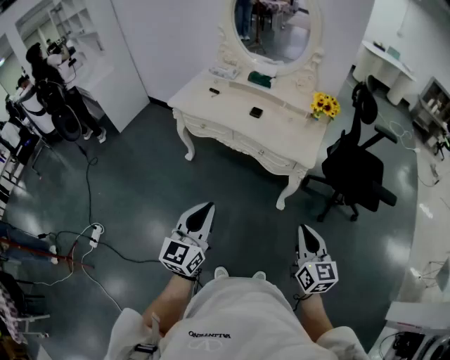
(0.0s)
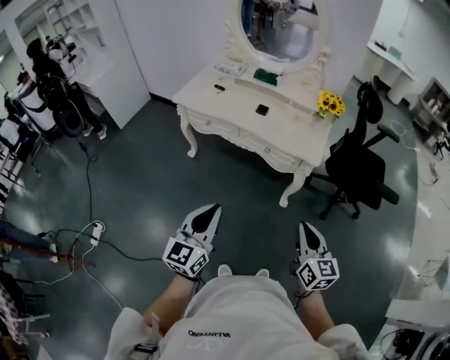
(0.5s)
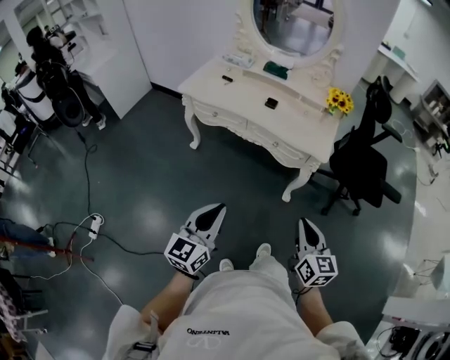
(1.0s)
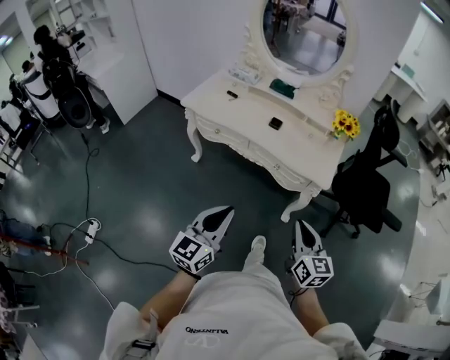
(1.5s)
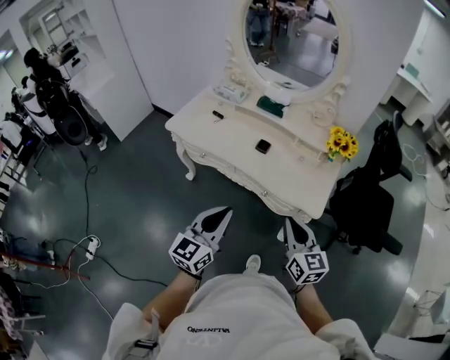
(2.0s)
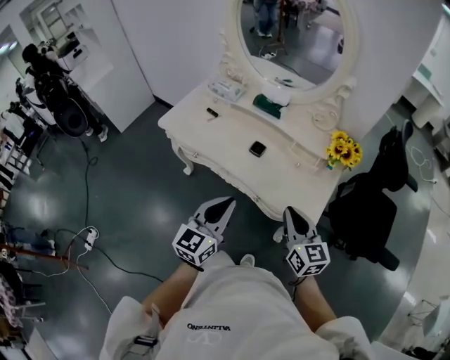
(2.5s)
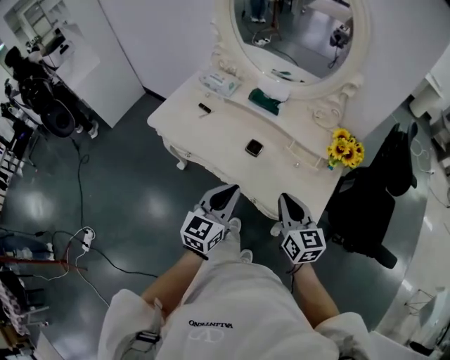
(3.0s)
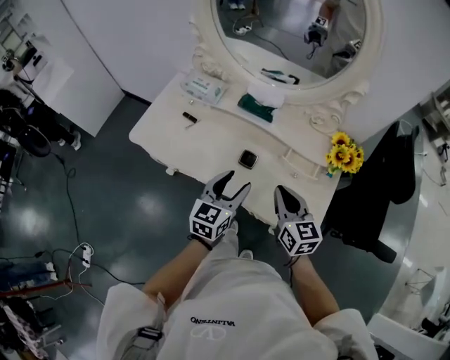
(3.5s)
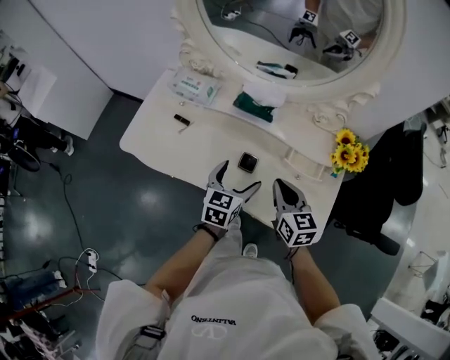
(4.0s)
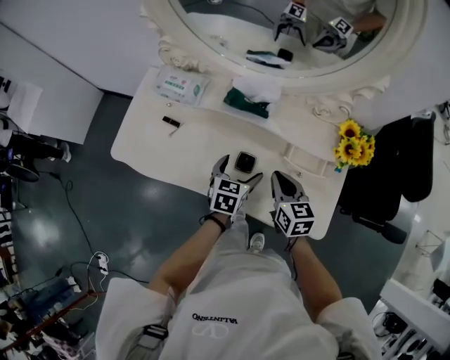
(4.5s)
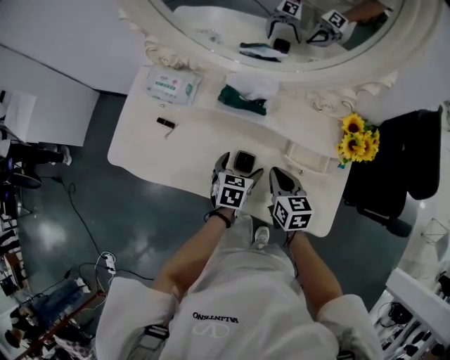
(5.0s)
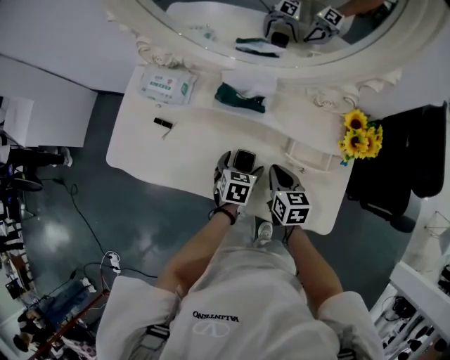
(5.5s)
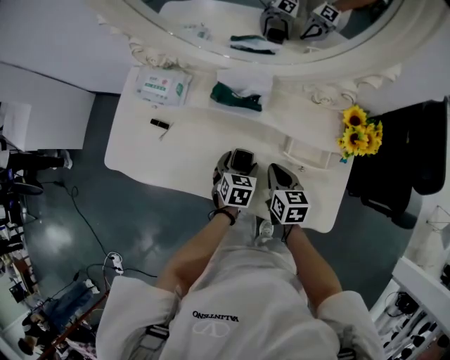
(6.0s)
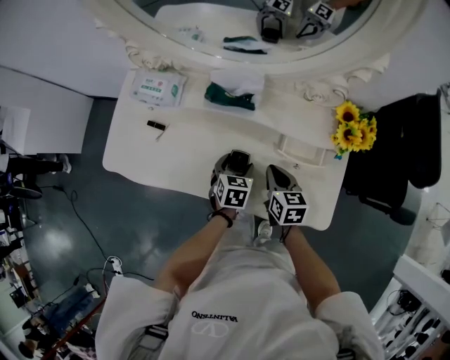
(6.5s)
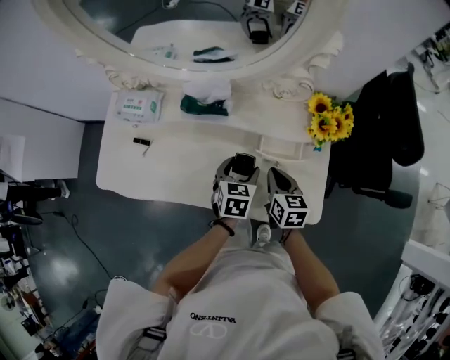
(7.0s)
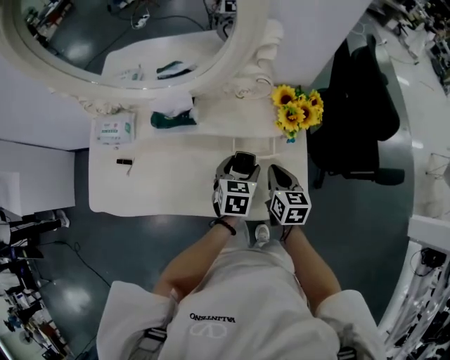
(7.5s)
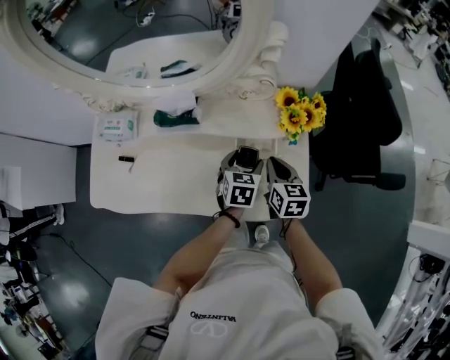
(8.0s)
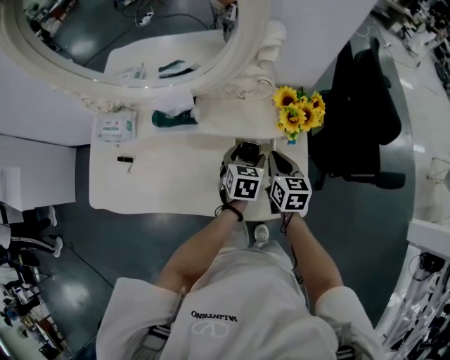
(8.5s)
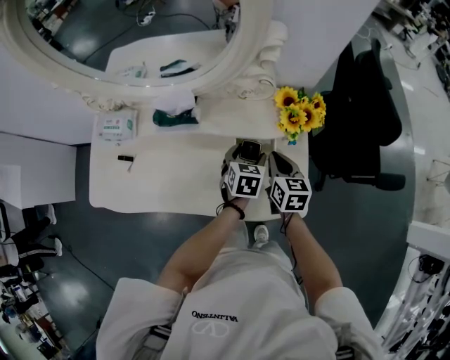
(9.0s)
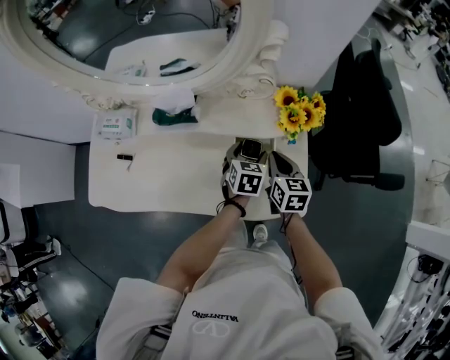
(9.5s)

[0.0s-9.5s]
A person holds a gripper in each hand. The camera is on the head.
0.0s to 2.0s: The grippers both shift forward by about 25 cm.
2.0s to 4.0s: The left gripper moves forward and downward, some 40 cm, rotates approximately 30 degrees, and opens. Meanwhile the right gripper moves forward, roughly 35 cm.
4.0s to 5.5s: The two grippers go roughly 15 cm downward and forward. The left gripper changes its angle by about 20 degrees.
5.5s to 7.5s: The left gripper goes approximately 20 cm to the right and upward; the right gripper heads to the right, covering roughly 15 cm, and rotates roughly 20 degrees.
7.5s to 9.5s: The left gripper moves roughly 5 cm.

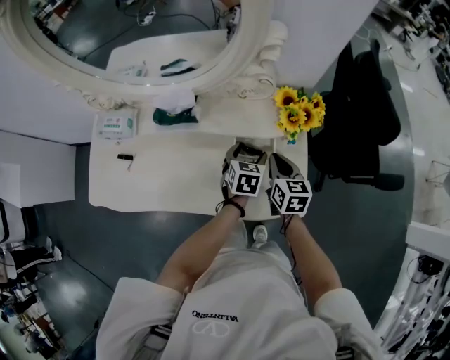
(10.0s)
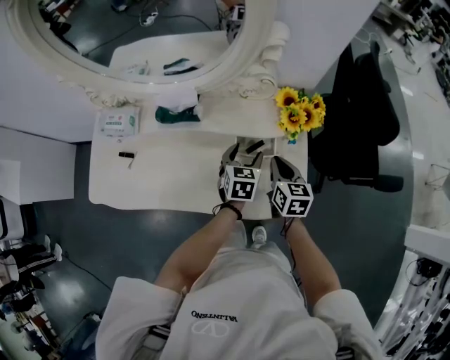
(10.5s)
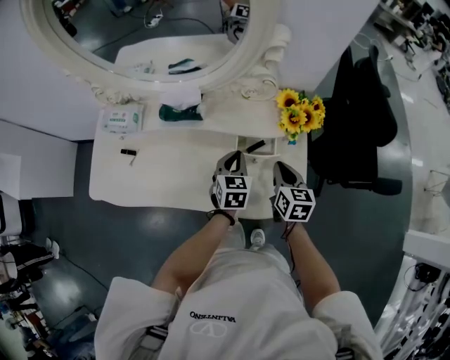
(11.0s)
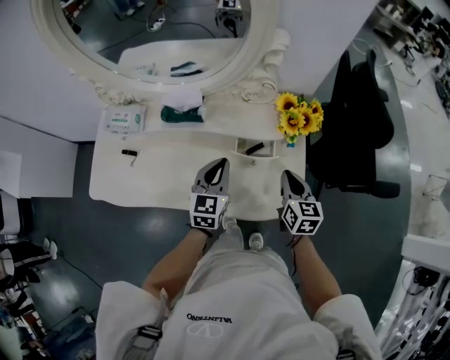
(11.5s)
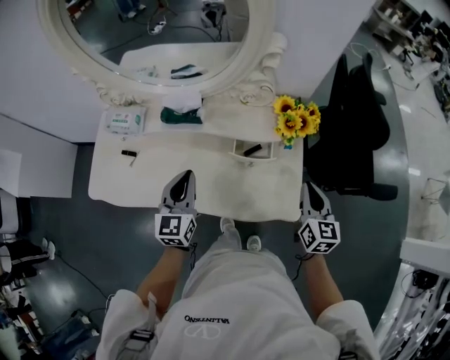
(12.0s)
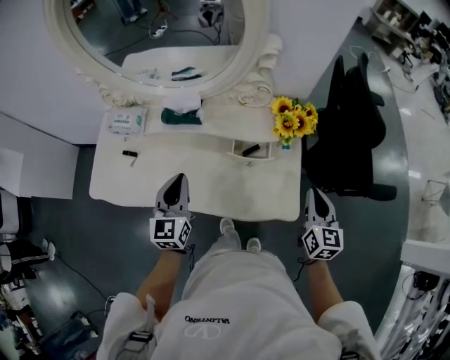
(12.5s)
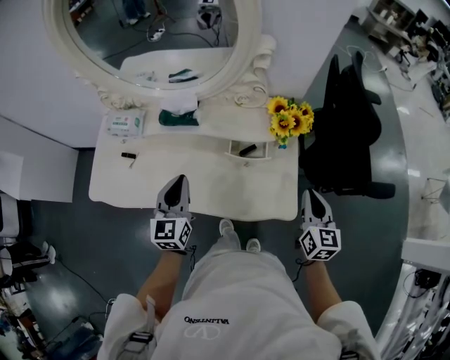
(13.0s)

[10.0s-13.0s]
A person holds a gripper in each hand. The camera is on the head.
10.0s to 11.5s: The left gripper shifts about 15 cm upward, to the left and backward, changes its angle by approximately 30 degrees, and closes its fingers, while the right gripper heads backward, covering about 5 cm.
11.5s to 13.0s: The left gripper travels to the left, backward and upward by roughly 15 cm. The right gripper heads to the right, backward and upward, covering about 15 cm.

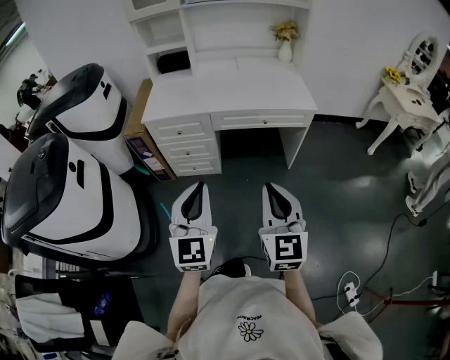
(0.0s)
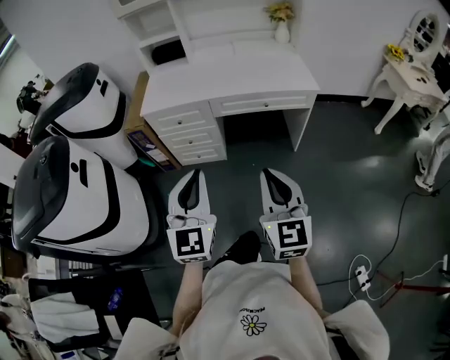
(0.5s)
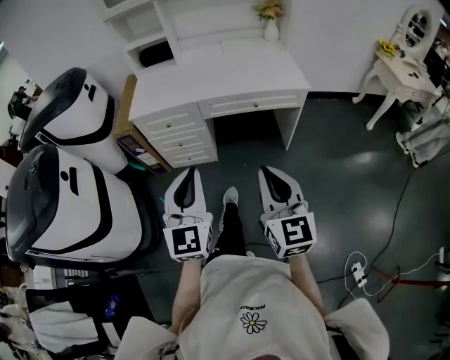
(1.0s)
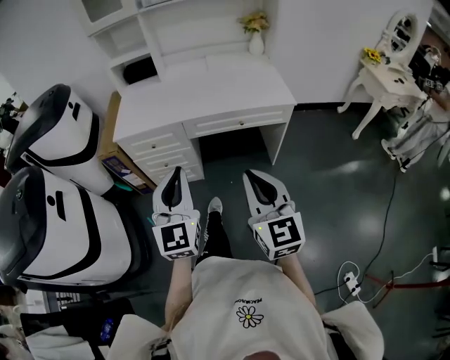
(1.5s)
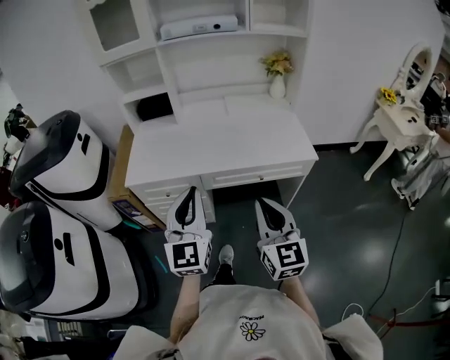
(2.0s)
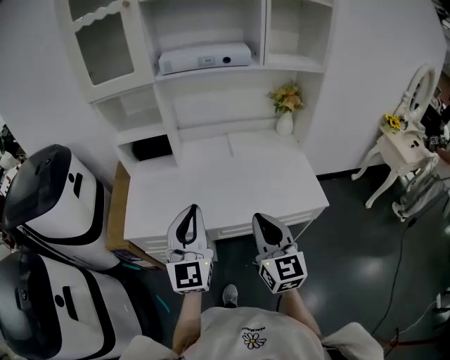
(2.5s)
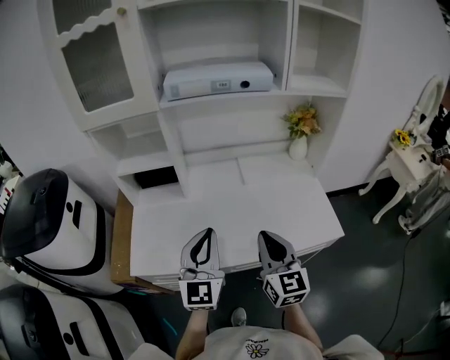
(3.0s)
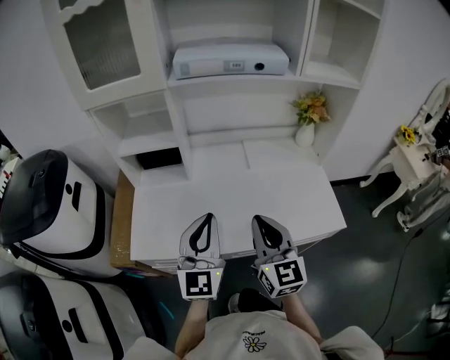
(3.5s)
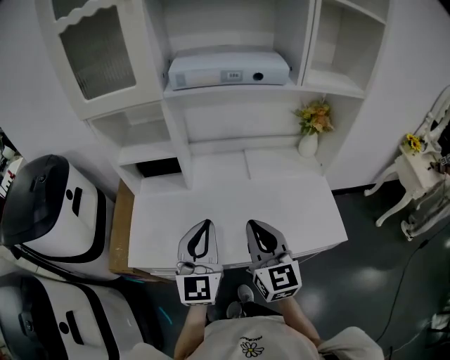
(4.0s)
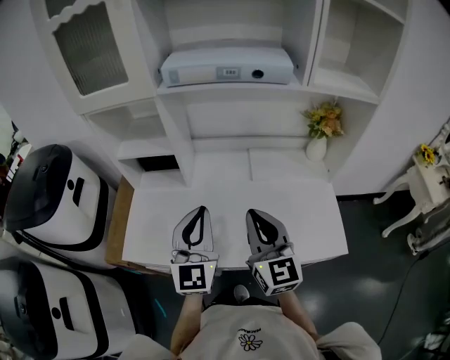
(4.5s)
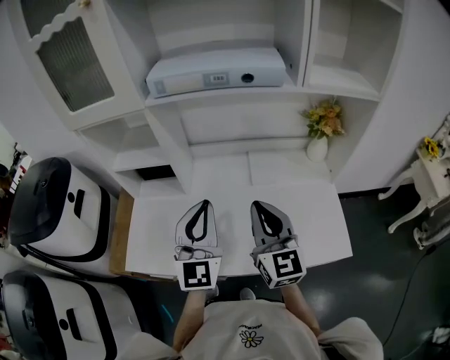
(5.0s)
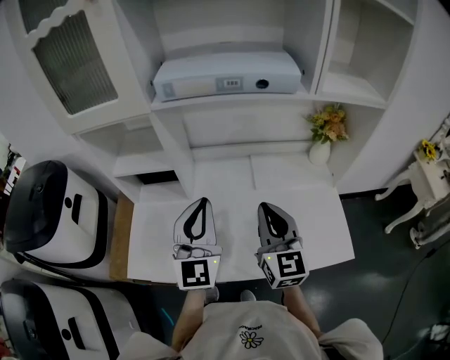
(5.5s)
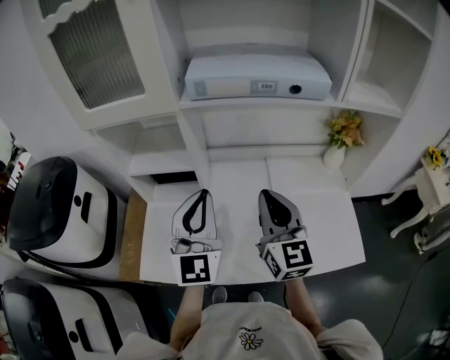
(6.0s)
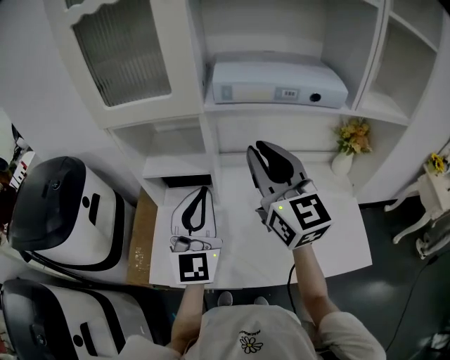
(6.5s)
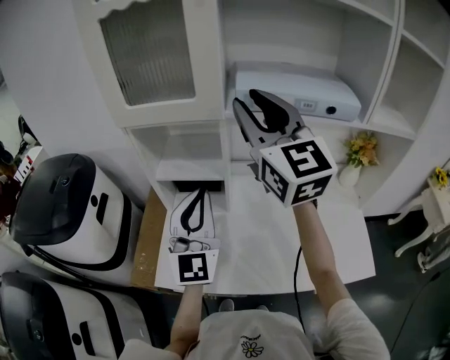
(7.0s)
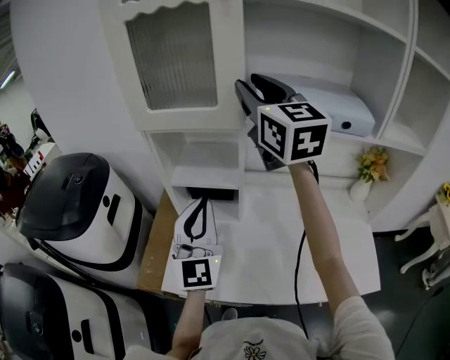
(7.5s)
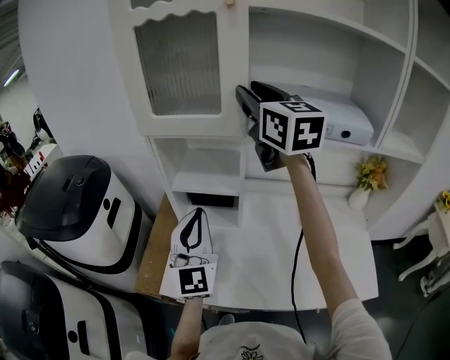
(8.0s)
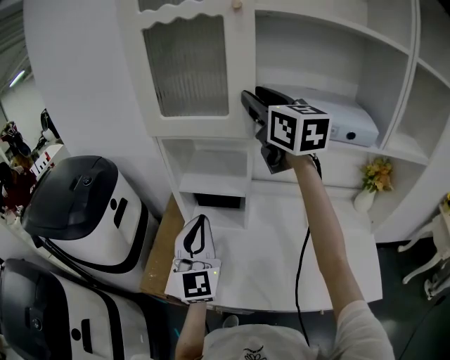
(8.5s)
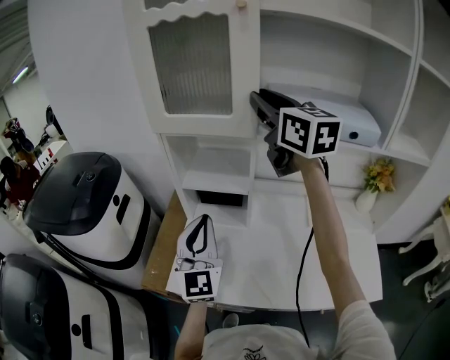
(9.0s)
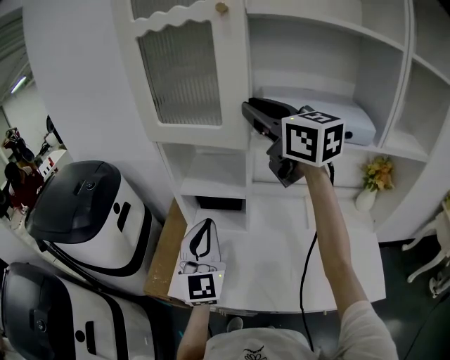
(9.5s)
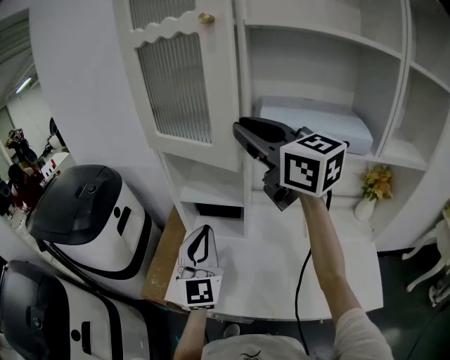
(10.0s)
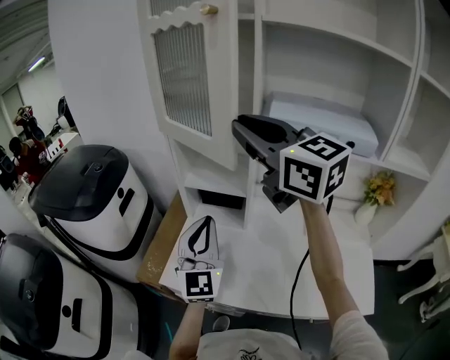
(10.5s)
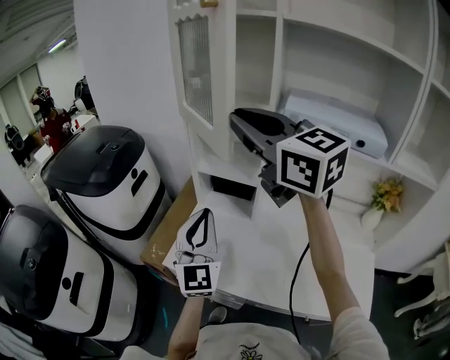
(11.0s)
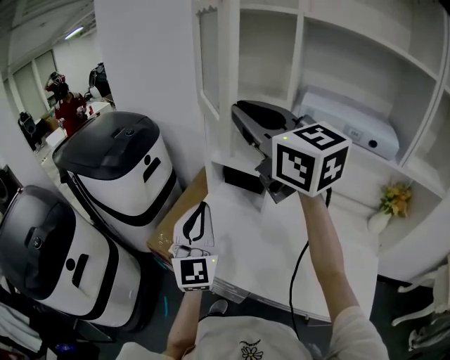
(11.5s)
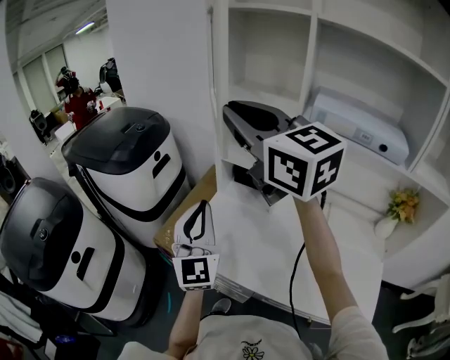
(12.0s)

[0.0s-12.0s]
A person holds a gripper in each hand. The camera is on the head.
0.0s to 2.0s: The two grippers go about 25 cm forward.
2.0s to 4.0s: Both grippers travel together forward, about 30 cm.
4.0s to 6.0s: The right gripper moves forward, roughly 15 cm. The left gripper goes roughly 15 cm forward and upward.
6.0s to 8.0s: The left gripper is displaced to the left by roughly 15 cm. Meanwhile the right gripper shifts approximately 35 cm upward, forward and to the left, and opens its fingers.
8.0s to 10.0s: The right gripper goes approximately 10 cm backward, and swivels about 20 degrees.
10.0s to 12.0s: The right gripper travels to the left by some 15 cm. Meanwhile the left gripper is displaced to the left and backward by approximately 10 cm.

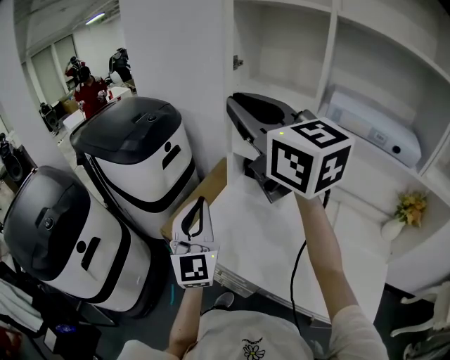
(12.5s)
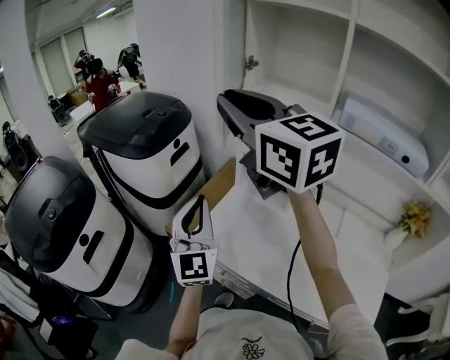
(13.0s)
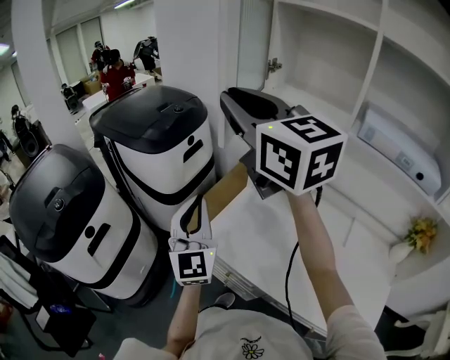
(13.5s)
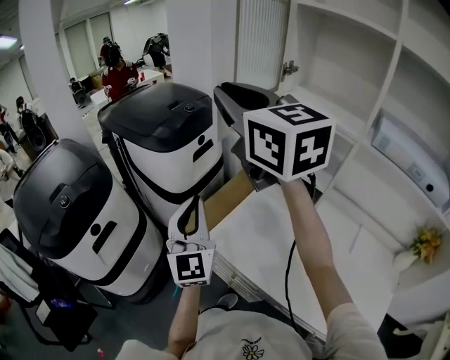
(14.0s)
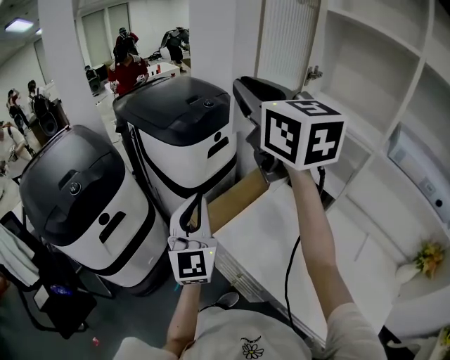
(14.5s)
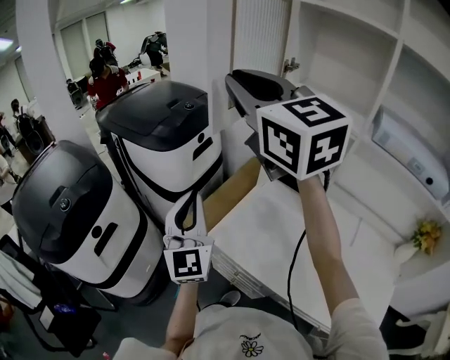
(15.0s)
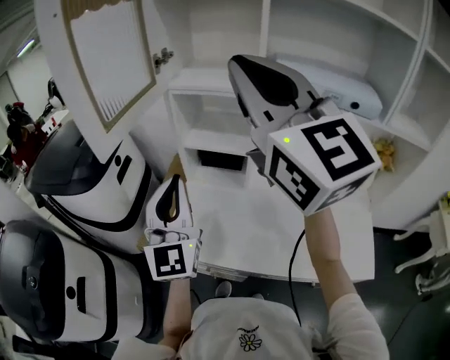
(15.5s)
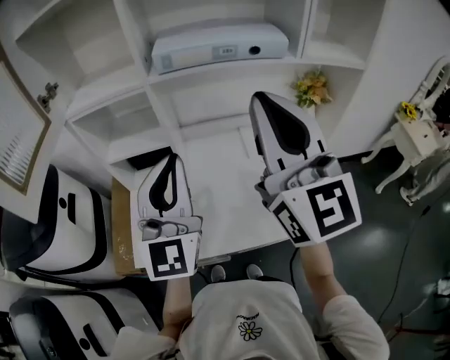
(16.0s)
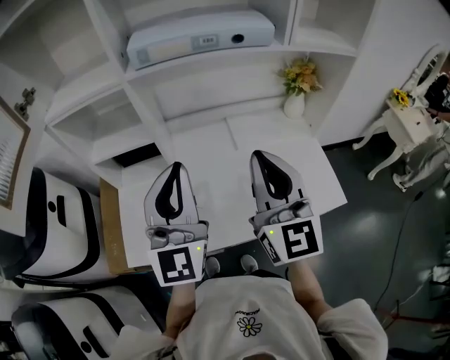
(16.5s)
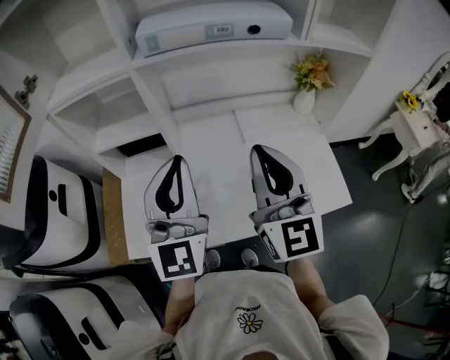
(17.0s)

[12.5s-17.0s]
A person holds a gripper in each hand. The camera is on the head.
12.5s to 14.5s: Both grippers travel together to the left and forward, roughly 15 cm.
14.5s to 17.0s: The right gripper moves about 50 cm, and turns by approximately 70 degrees; the left gripper shifts by approximately 40 cm, and rotates some 60 degrees.
